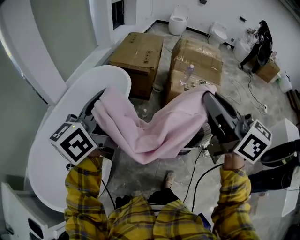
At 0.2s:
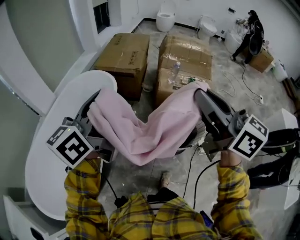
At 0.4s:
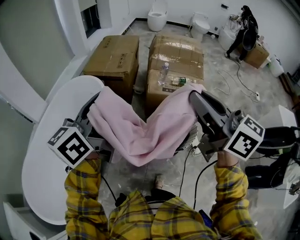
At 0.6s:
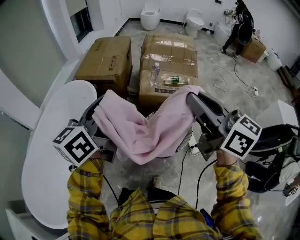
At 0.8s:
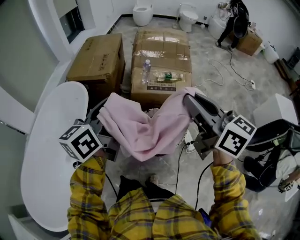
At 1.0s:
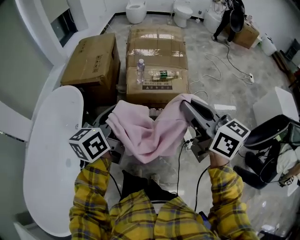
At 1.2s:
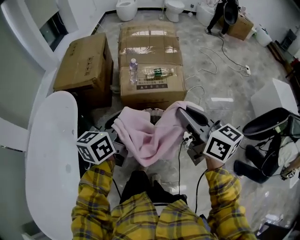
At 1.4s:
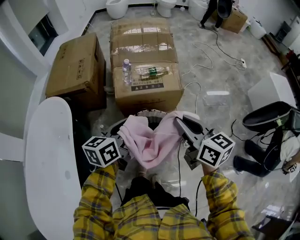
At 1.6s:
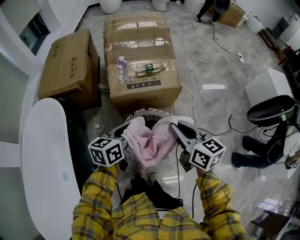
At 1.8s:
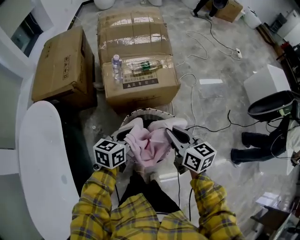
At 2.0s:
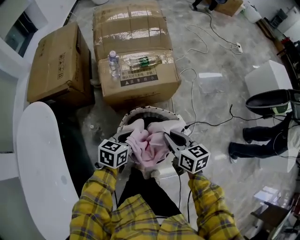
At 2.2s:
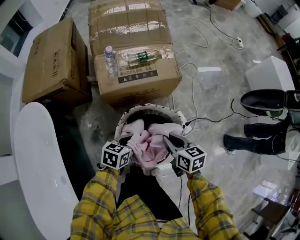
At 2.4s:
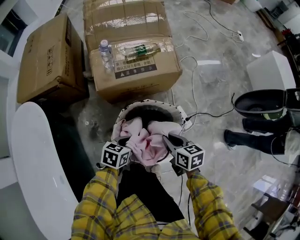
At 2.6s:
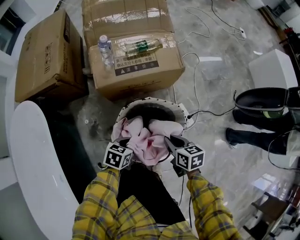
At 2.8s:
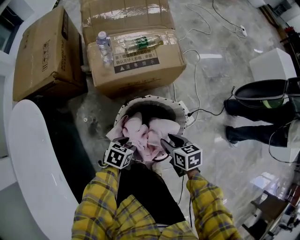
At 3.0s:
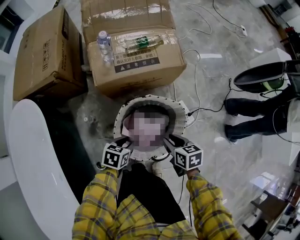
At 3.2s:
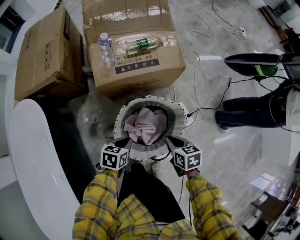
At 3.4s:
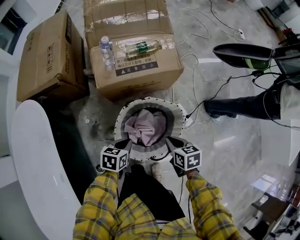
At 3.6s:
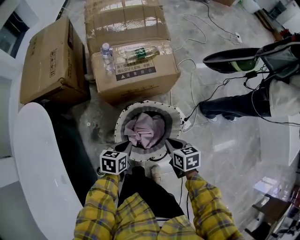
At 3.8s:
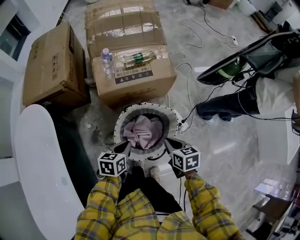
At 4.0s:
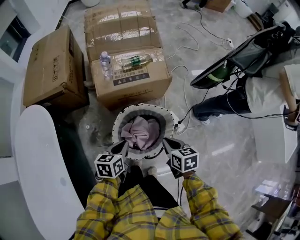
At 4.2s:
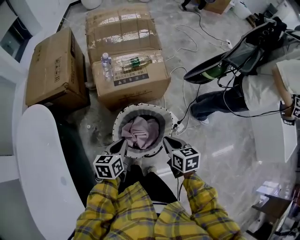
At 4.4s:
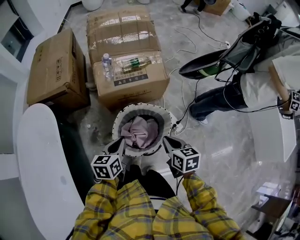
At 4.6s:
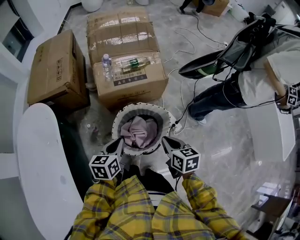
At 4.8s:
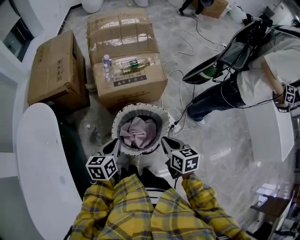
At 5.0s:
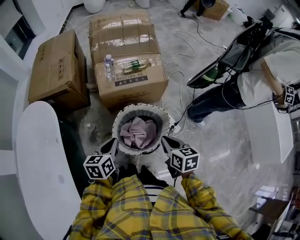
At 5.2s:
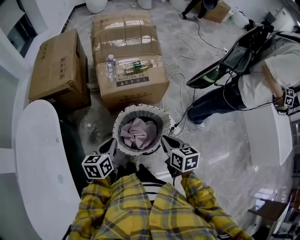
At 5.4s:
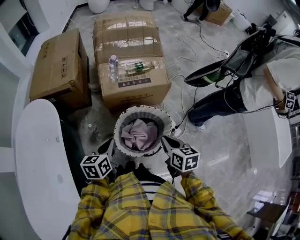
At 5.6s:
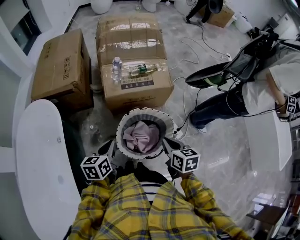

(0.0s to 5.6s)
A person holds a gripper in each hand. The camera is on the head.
0.0s - 1.4s: Both grippers travel together to the right, downward and forward, approximately 40 cm. The left gripper changes its angle by roughly 40 degrees. The right gripper changes its angle by roughly 30 degrees.
1.4s - 2.8s: The grippers both shift downward by roughly 35 cm. The right gripper angles its fingers downward, by about 40 degrees, and opens its fingers. The left gripper points its fingers about 40 degrees further downward, and opens up.
2.8s - 4.2s: Both grippers move upward, approximately 15 cm. The right gripper closes its fingers; the left gripper rotates about 40 degrees, and closes.
4.2s - 5.6s: The left gripper heads to the left, covering approximately 10 cm.

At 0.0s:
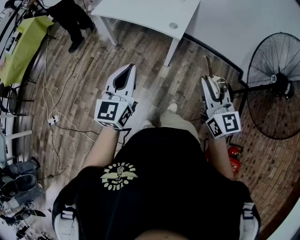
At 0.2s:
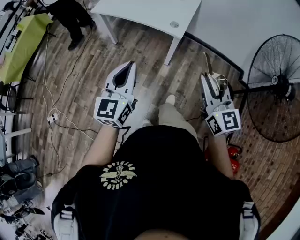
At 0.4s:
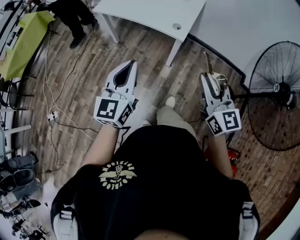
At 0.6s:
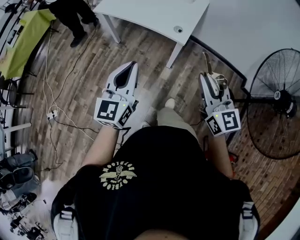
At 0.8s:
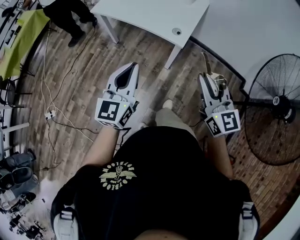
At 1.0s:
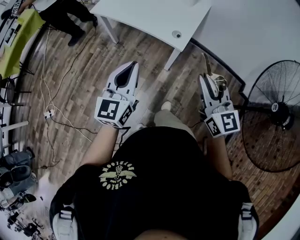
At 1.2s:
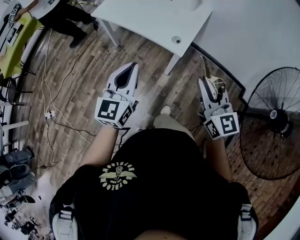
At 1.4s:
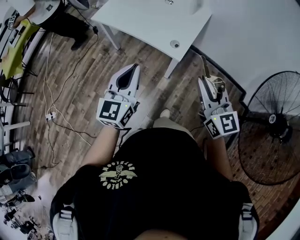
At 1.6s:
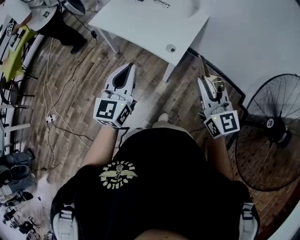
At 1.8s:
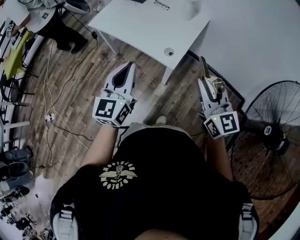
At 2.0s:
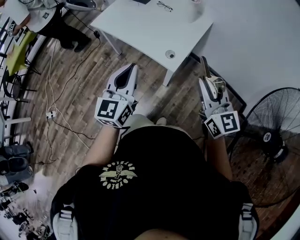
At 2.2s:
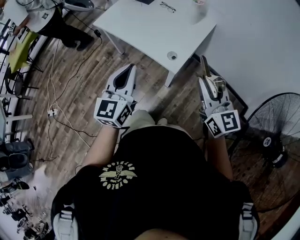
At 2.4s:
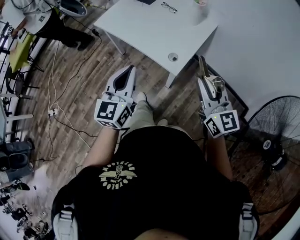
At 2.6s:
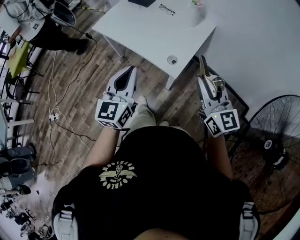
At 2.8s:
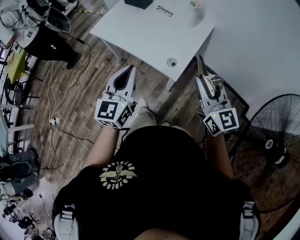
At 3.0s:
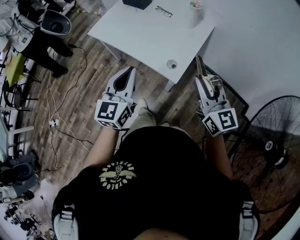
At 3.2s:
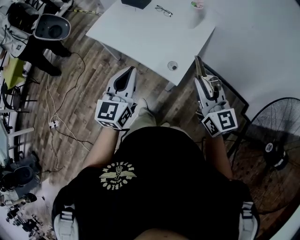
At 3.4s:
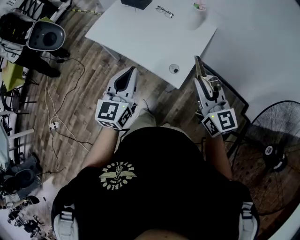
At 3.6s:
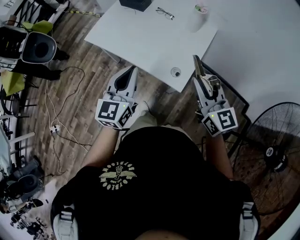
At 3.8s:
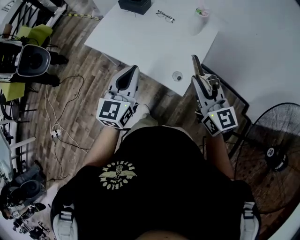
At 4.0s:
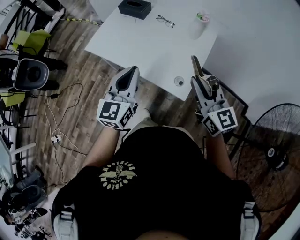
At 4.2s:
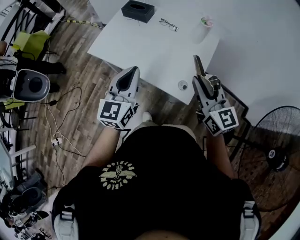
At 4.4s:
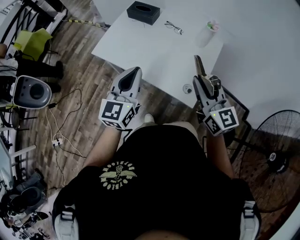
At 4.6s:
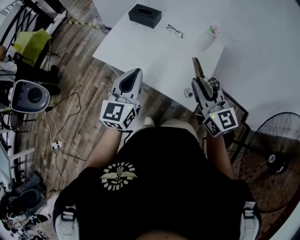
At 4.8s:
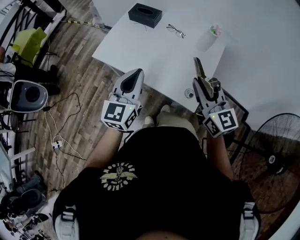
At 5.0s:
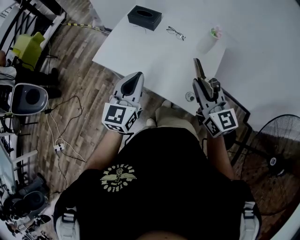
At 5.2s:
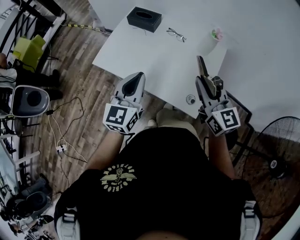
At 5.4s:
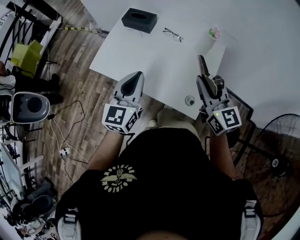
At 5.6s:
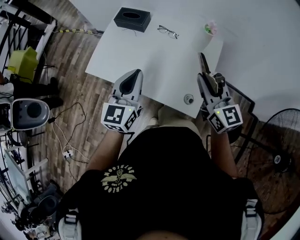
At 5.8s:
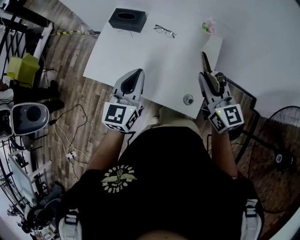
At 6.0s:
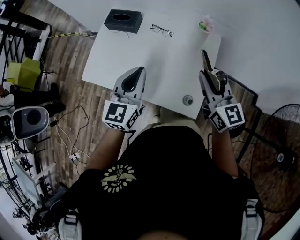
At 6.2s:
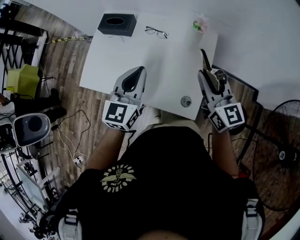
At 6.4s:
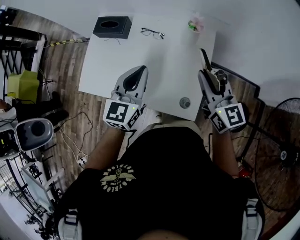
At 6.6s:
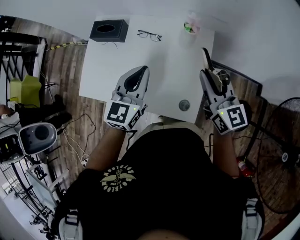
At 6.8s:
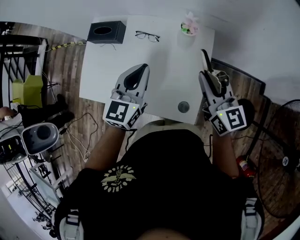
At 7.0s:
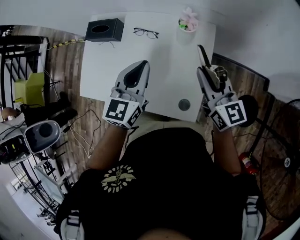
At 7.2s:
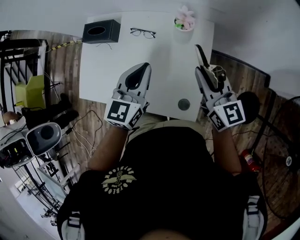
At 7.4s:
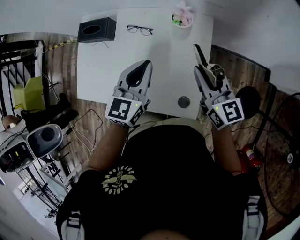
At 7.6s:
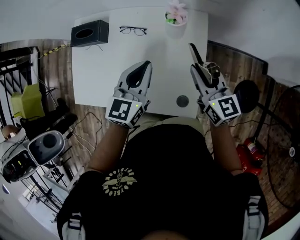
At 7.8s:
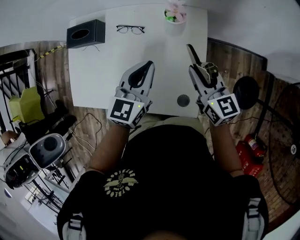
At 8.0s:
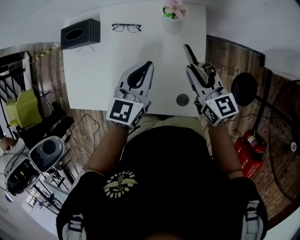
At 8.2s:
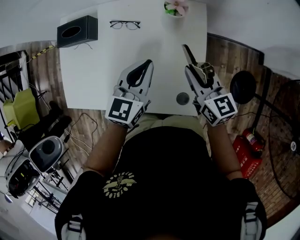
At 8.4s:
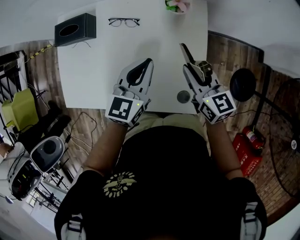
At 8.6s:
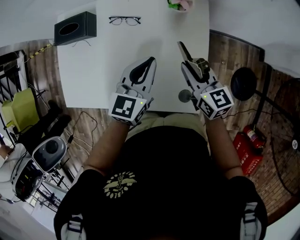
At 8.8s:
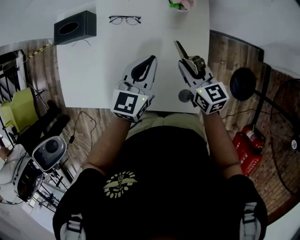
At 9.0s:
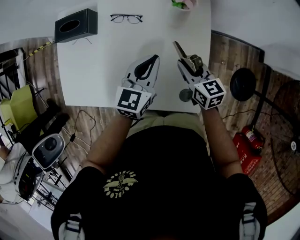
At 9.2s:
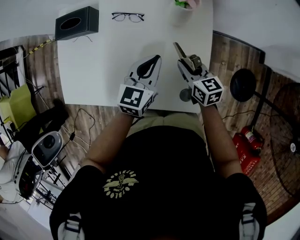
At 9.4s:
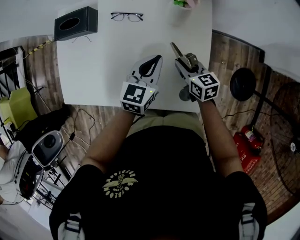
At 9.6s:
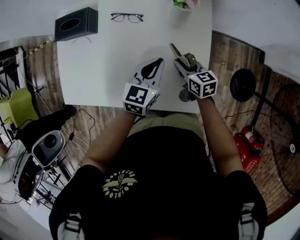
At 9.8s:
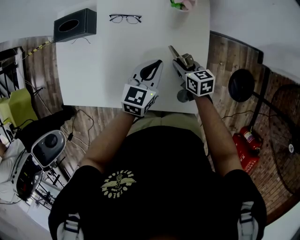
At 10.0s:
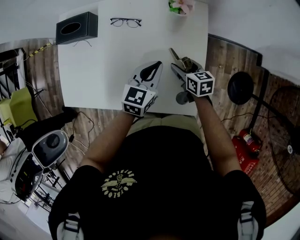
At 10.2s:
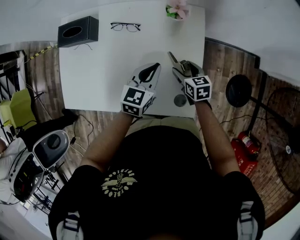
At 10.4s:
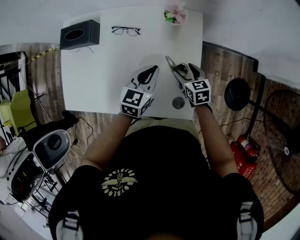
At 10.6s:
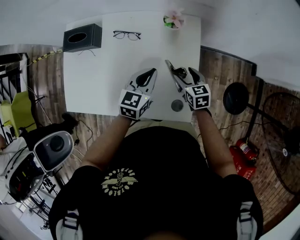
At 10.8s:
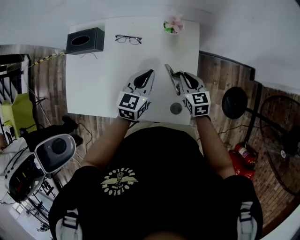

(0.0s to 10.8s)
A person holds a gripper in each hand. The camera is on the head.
0.0s - 1.6s: The right gripper shifts roughly 20 cm forward; the left gripper travels forward and to the right by about 20 cm.
1.6s - 3.0s: Both grippers move forward, approximately 10 cm.
3.0s - 4.6s: Both grippers travel together forward and to the left, some 25 cm.
4.6s - 6.2s: Both grippers move forward and to the right, some 20 cm.
6.2s - 7.8s: The right gripper moves downward, forward and to the right, roughly 15 cm, while the left gripper heads to the right, forward and downward, covering some 20 cm.
7.8s - 9.2s: The right gripper is displaced downward by approximately 15 cm. Meanwhile the left gripper is displaced downward by roughly 10 cm.
9.2s - 10.8s: The right gripper is displaced to the right by about 5 cm, reaches about 5 cm downward, then returns, and opens and closes again.

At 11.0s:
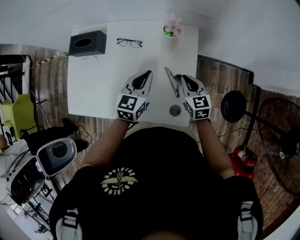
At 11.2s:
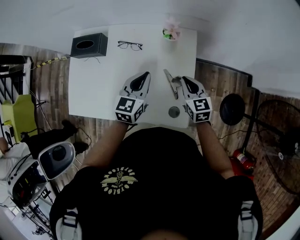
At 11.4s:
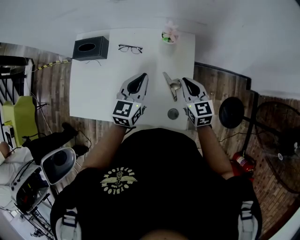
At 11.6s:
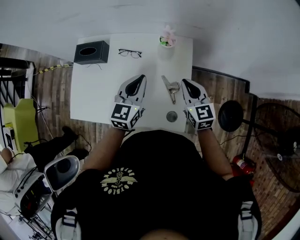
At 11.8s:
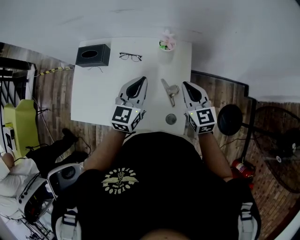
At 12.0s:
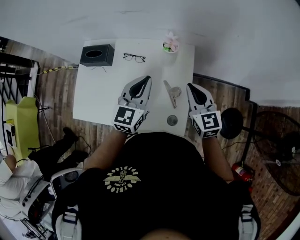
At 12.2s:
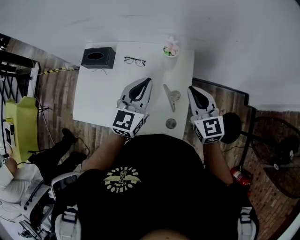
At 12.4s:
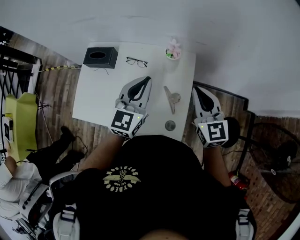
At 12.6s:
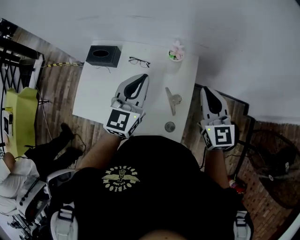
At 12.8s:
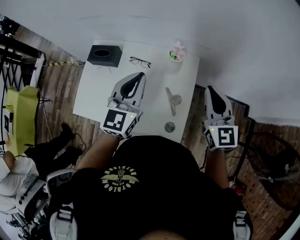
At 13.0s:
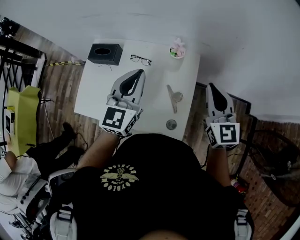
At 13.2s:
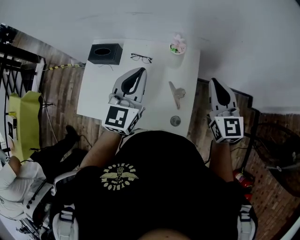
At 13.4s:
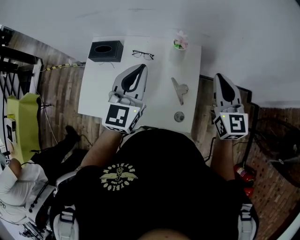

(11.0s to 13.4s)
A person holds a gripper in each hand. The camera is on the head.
11.0s - 12.2s: The two grippers go about 20 cm upward.
12.2s - 13.4s: The left gripper travels upward and to the left by roughly 10 cm. Meanwhile the right gripper is displaced upward by roughly 10 cm.

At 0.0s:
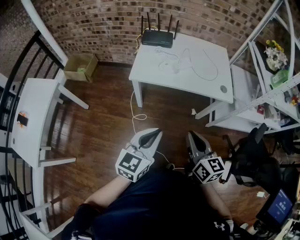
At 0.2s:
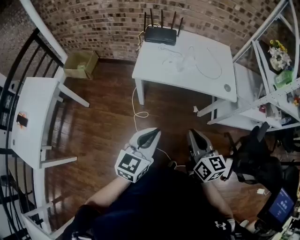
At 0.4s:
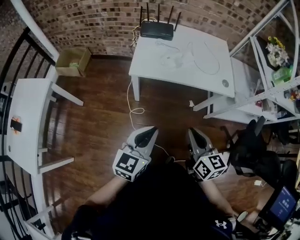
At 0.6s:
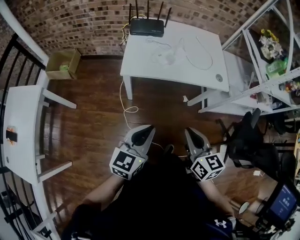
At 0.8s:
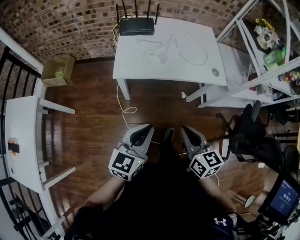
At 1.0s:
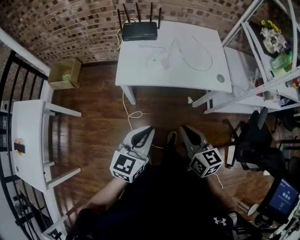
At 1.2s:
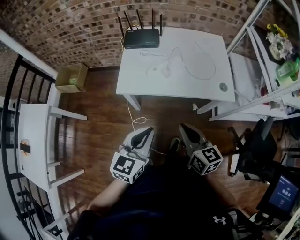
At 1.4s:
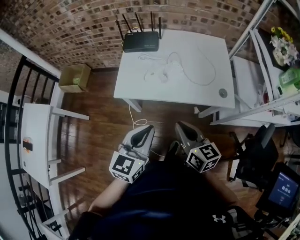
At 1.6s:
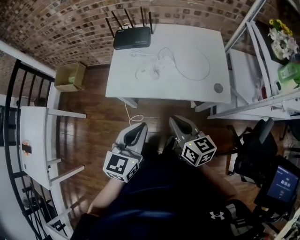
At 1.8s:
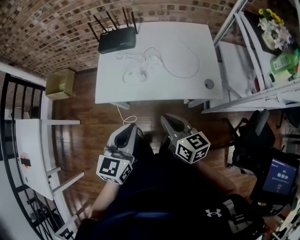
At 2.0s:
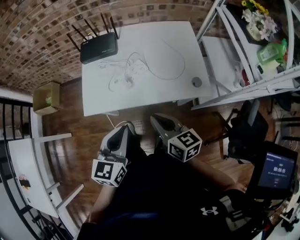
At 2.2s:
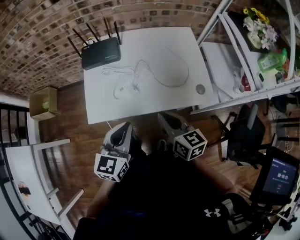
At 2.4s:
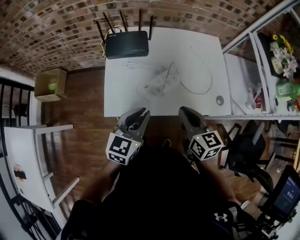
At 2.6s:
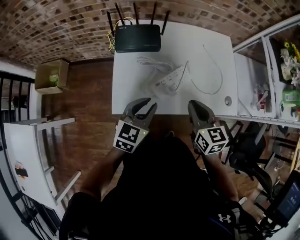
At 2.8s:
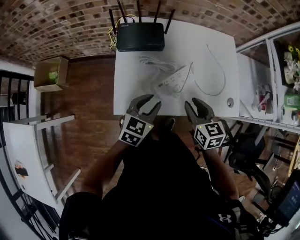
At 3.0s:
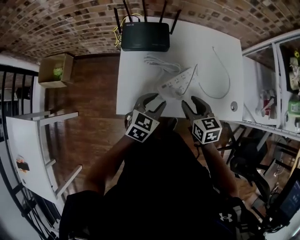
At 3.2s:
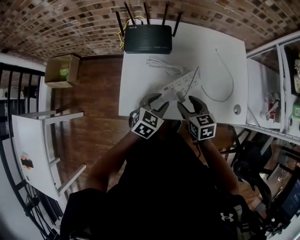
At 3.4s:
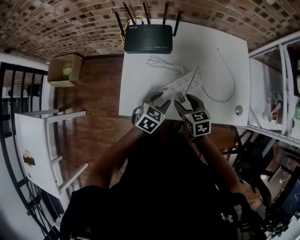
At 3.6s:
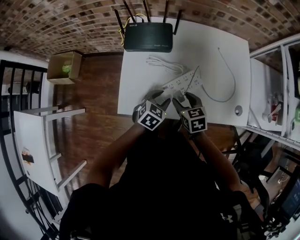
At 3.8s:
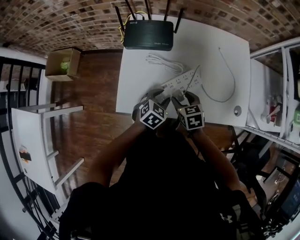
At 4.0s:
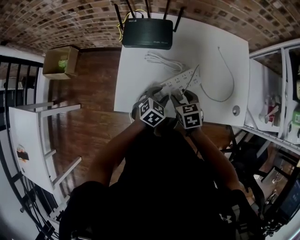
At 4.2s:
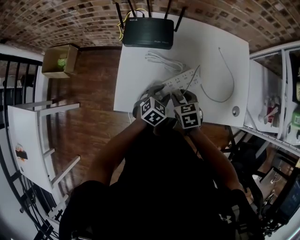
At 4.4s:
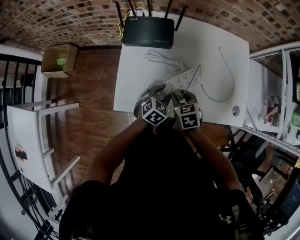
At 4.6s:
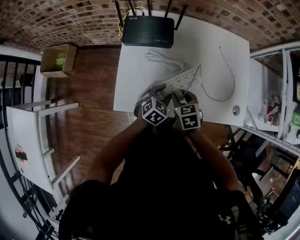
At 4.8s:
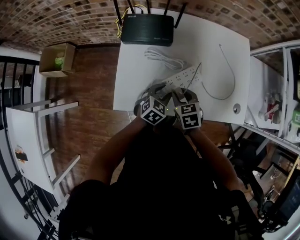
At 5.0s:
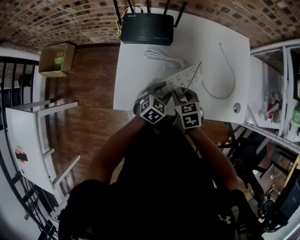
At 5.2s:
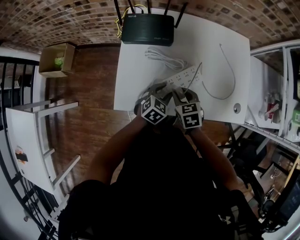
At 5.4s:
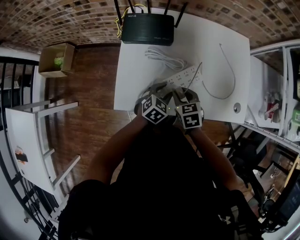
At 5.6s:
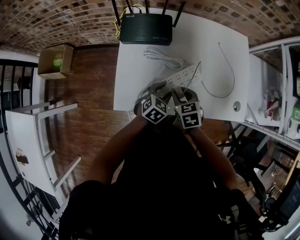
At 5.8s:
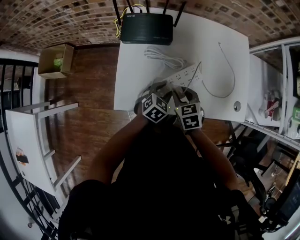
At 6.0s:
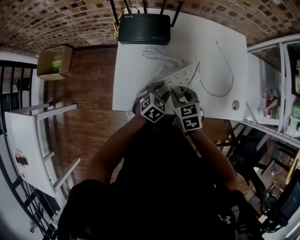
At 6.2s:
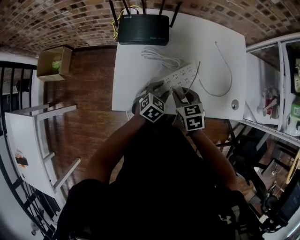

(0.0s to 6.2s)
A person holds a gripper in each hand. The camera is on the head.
0.0s - 1.6s: Both grippers move forward, roughly 20 cm.
1.6s - 3.2s: The left gripper shifts approximately 30 cm forward and downward, changes its angle by about 30 degrees, and opens. The right gripper goes about 25 cm forward, downward and to the left, changes its angle by some 30 degrees, and opens its fingers.
3.2s - 4.6s: The left gripper heads downward, covering about 10 cm, while the right gripper goes roughly 5 cm downward.
4.6s - 6.2s: The grippers make only small movements.
